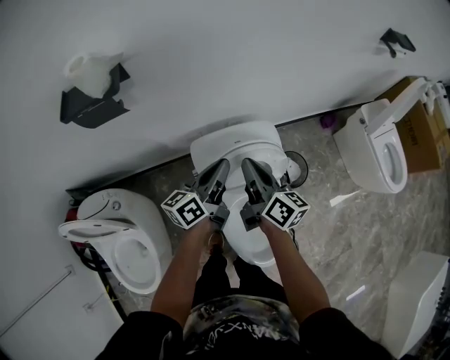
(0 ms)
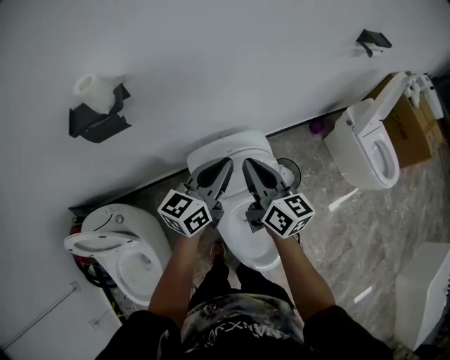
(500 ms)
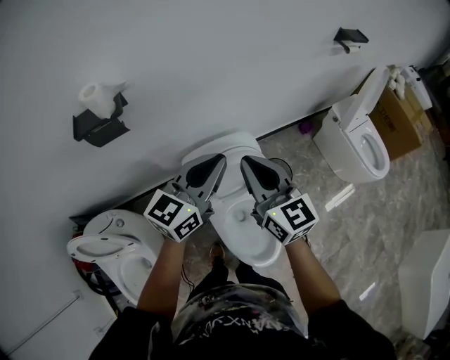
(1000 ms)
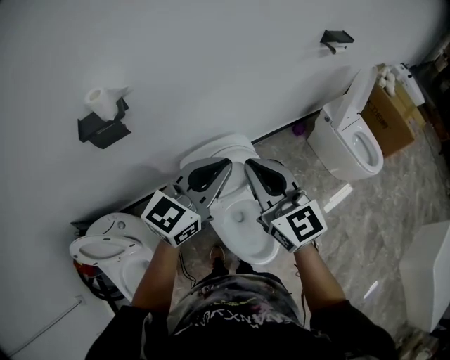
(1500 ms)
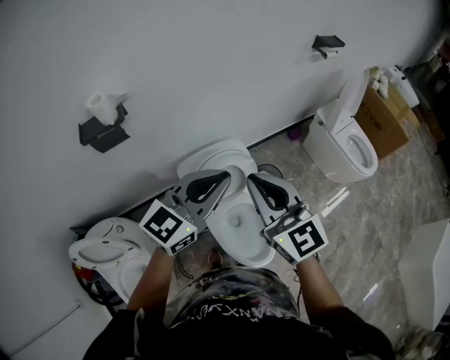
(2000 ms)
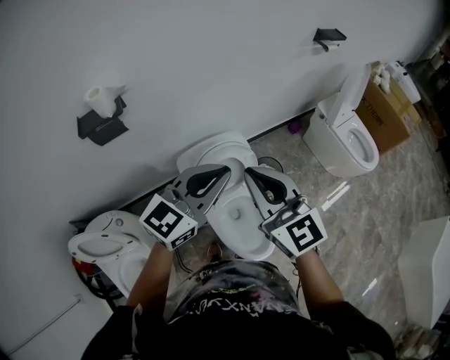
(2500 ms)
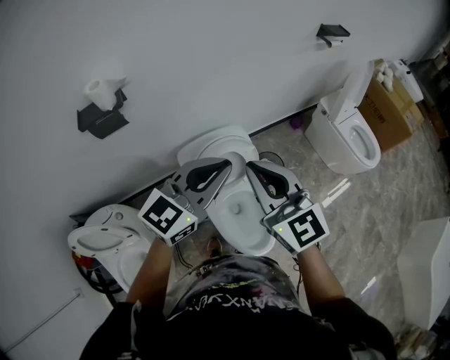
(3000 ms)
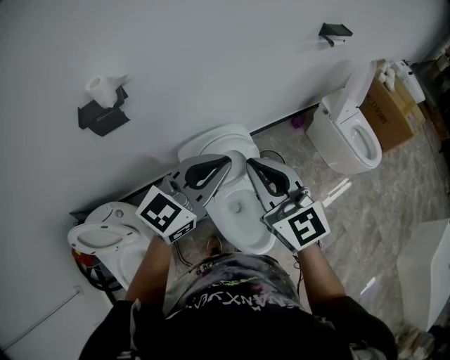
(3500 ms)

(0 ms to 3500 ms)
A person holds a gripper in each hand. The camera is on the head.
0 ms - 2000 ms: Both grippers travel together upward and backward, approximately 30 cm. The right gripper twists about 60 degrees counterclockwise, seen from behind, while the left gripper twists roughly 50 degrees clockwise, seen from behind.
2000 ms - 3500 ms: Neither gripper changes place.

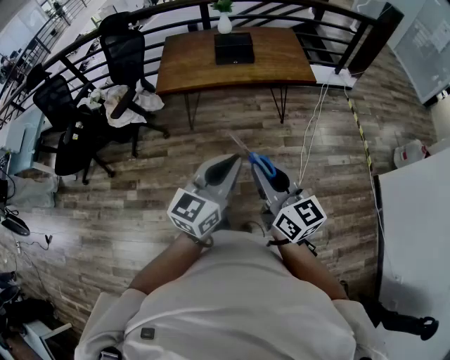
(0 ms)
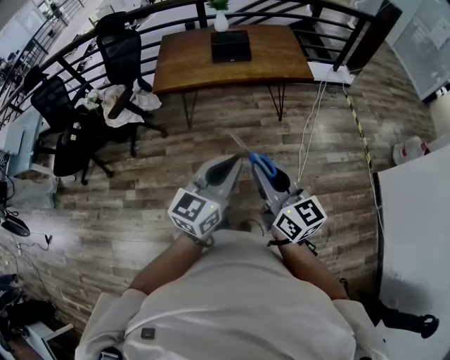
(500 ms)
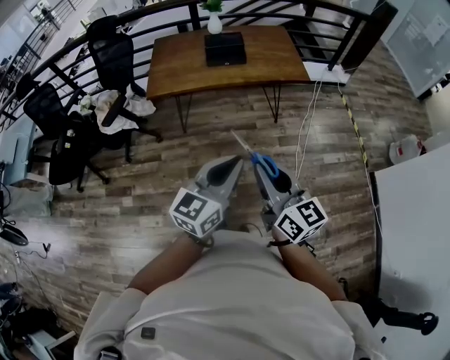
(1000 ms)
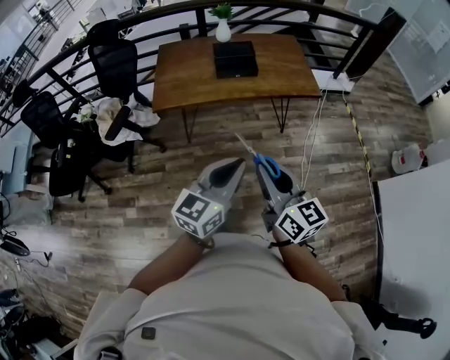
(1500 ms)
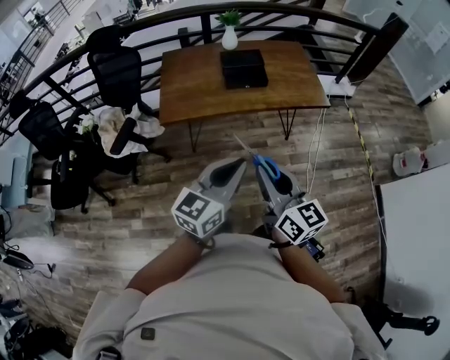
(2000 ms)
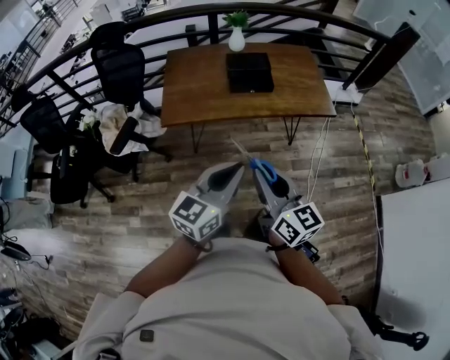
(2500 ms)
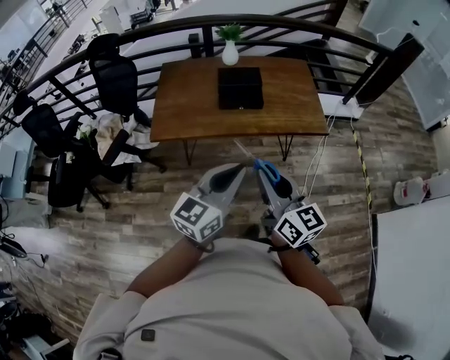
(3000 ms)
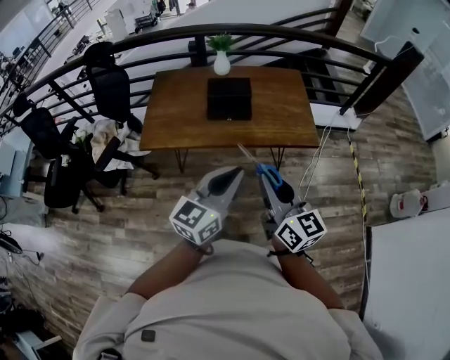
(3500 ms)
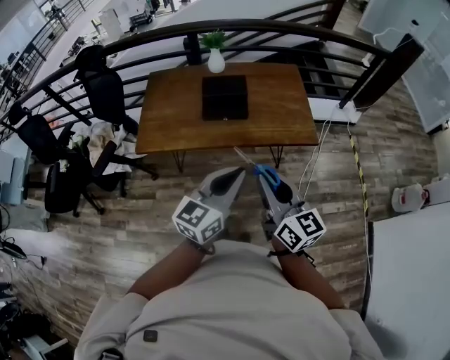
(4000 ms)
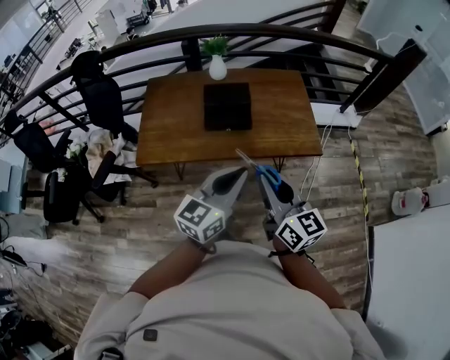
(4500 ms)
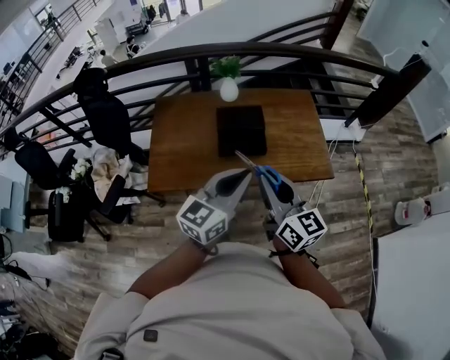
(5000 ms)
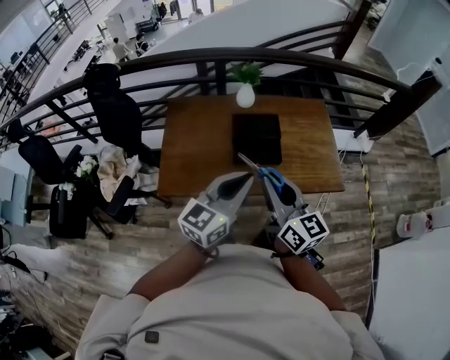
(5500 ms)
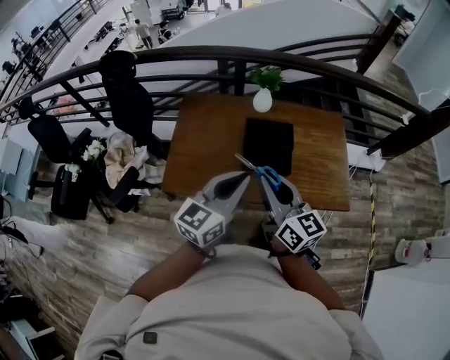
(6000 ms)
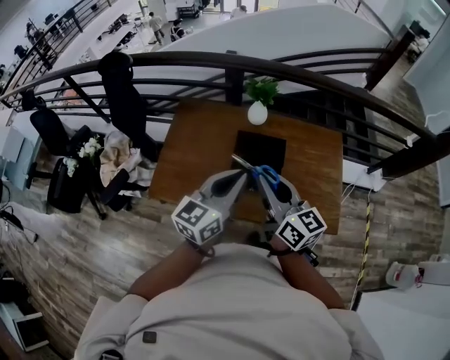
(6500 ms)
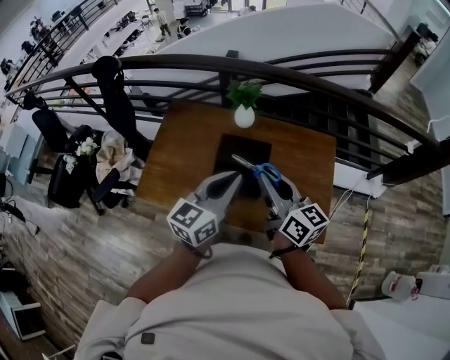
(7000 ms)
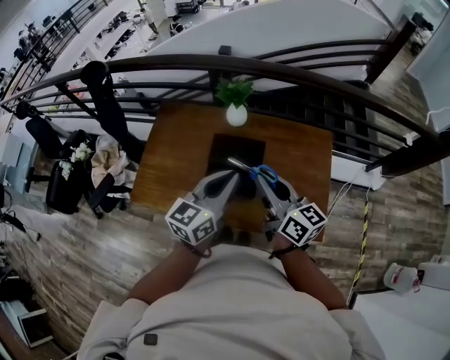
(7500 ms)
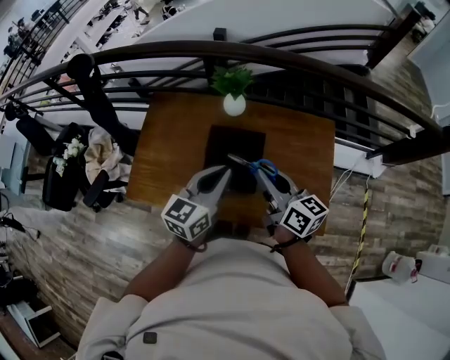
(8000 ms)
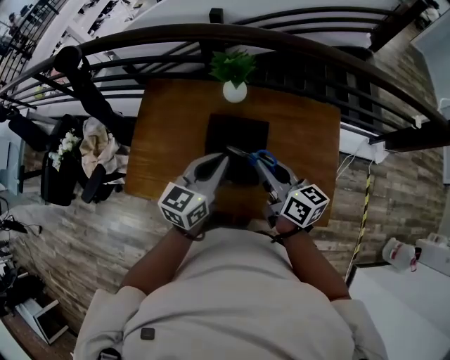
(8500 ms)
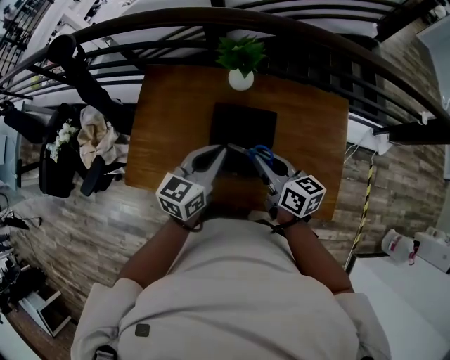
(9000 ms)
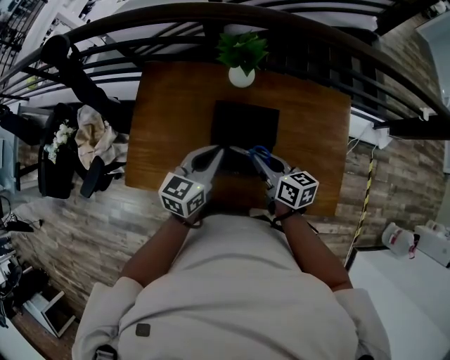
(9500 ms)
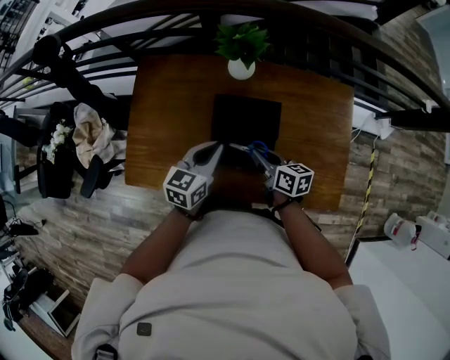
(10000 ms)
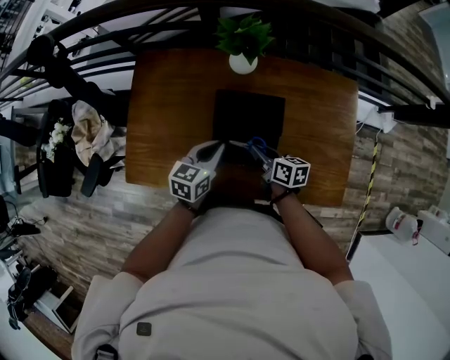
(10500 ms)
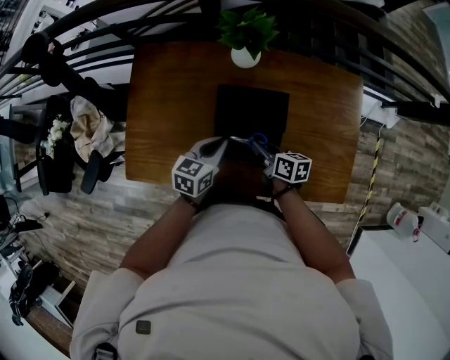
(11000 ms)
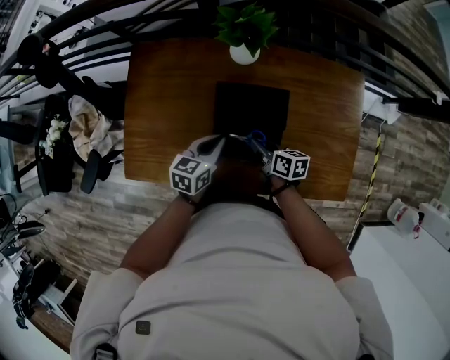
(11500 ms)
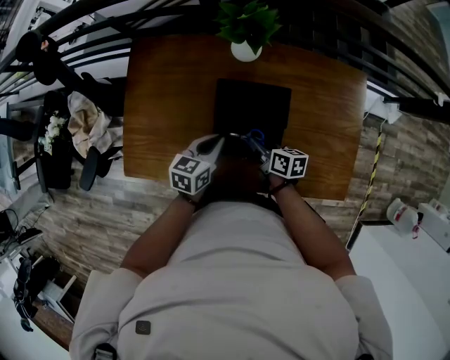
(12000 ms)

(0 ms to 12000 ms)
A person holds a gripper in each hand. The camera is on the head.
0 ms - 2000 ms: The two grippers go approximately 30 cm forward and to the left.
2000 ms - 4000 ms: The two grippers go approximately 30 cm forward and to the right.
4000 ms - 6000 ms: The grippers both shift forward and to the left by roughly 35 cm.
6000 ms - 8000 ms: The two grippers go some 30 cm forward, to the right and downward. The right gripper turns by approximately 20 degrees.
8000 ms - 10000 ms: The right gripper is displaced downward by some 25 cm, and turns by roughly 20 degrees. Meanwhile the left gripper shifts about 20 cm downward, forward and to the left.
10000 ms - 12000 ms: Both grippers move downward, about 10 cm.

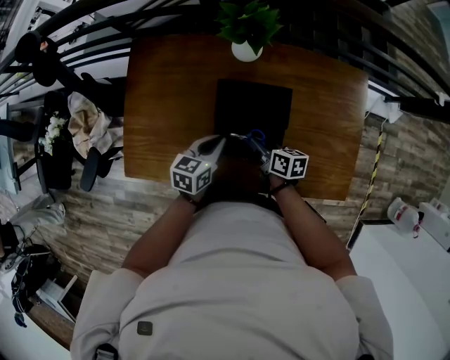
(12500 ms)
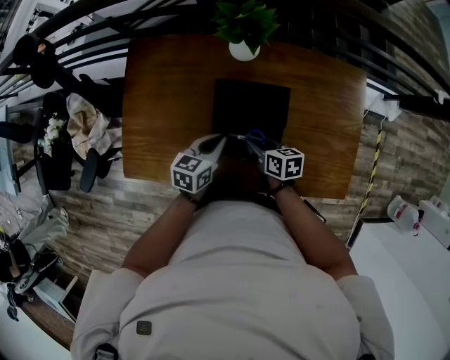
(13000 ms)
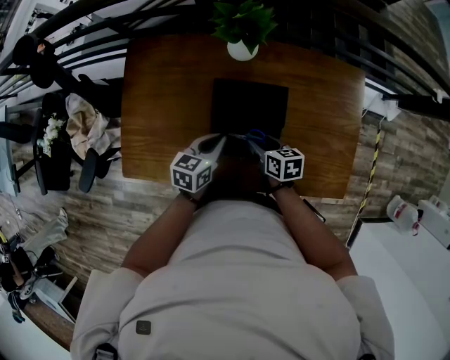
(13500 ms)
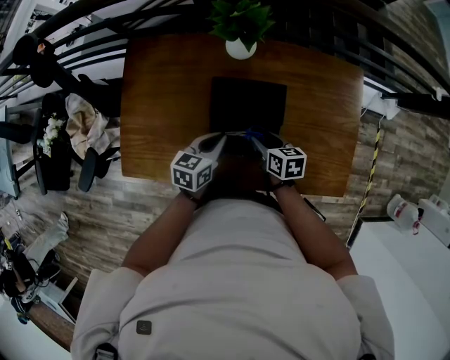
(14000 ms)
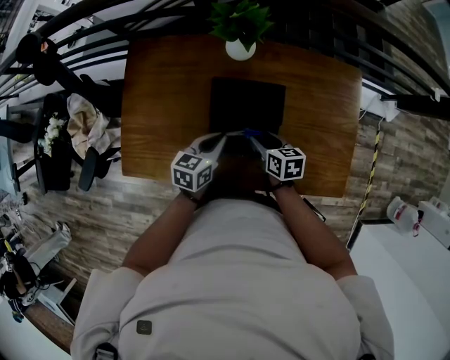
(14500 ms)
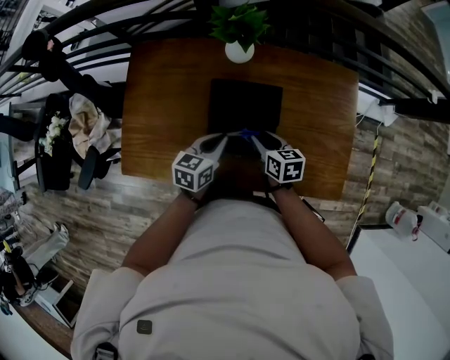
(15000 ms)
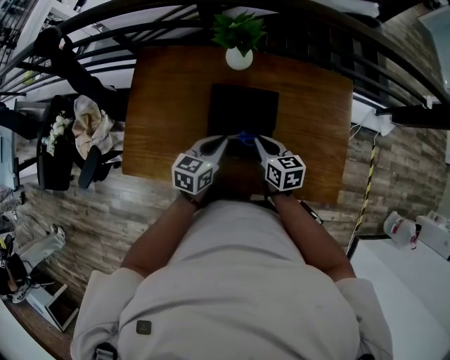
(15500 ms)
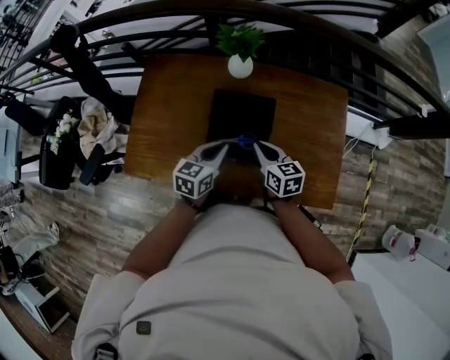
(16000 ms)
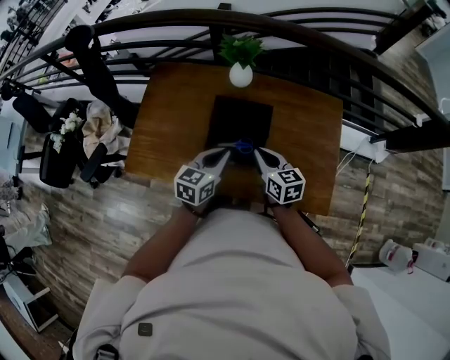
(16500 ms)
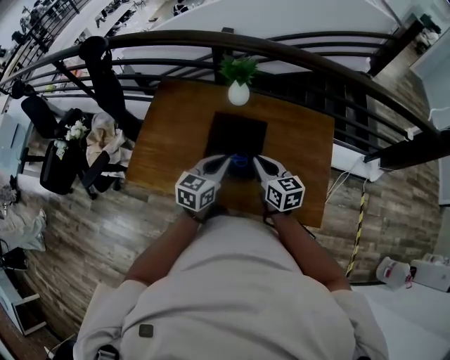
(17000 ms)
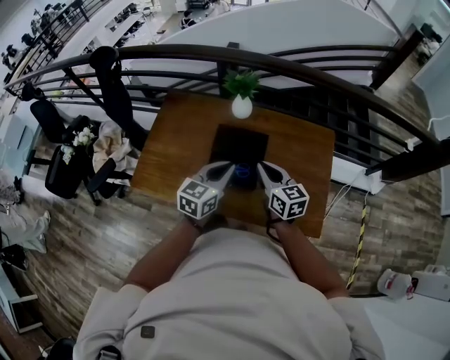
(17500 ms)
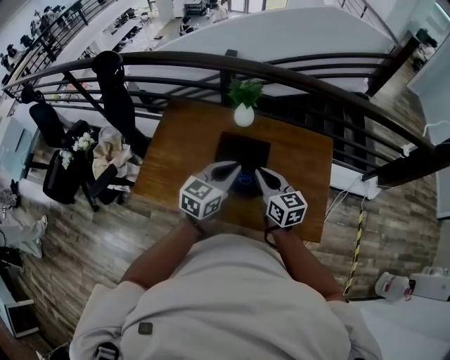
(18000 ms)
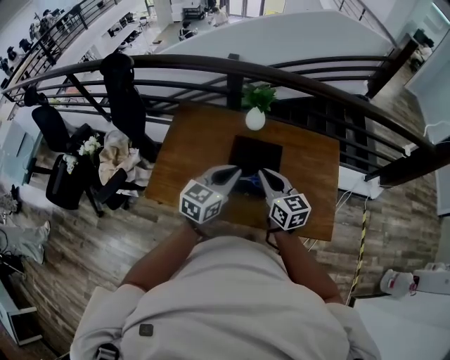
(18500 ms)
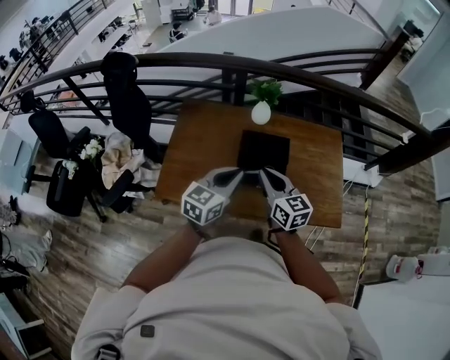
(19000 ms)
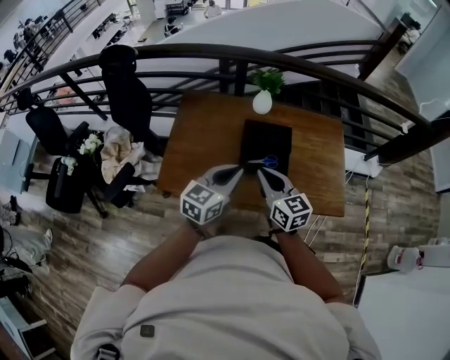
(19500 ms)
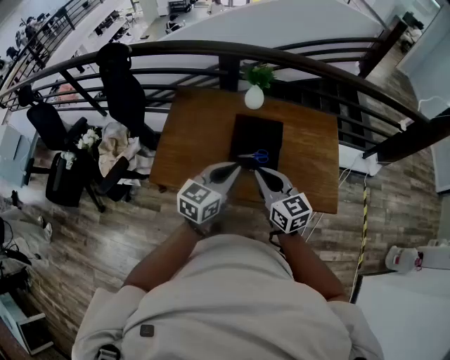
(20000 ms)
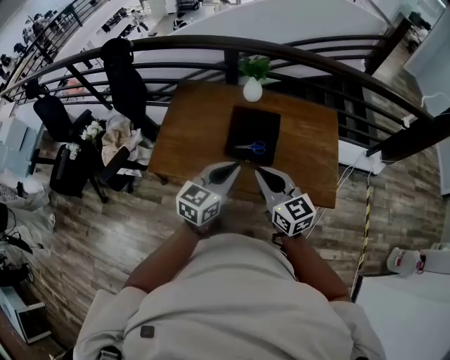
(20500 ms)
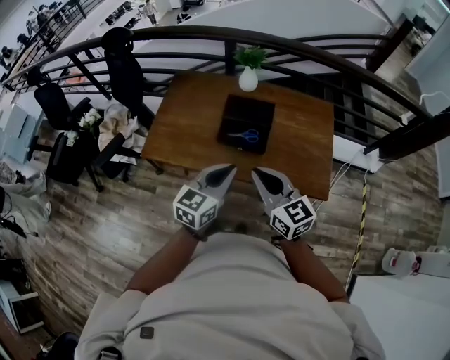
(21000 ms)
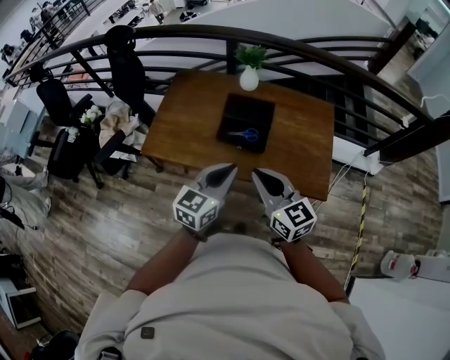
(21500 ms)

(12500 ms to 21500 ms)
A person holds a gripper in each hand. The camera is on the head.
12500 ms - 14500 ms: The right gripper opens.
14500 ms - 17000 ms: The right gripper heads upward and backward, covering approximately 20 cm, rotates some 30 degrees, and closes its fingers. The left gripper is displaced upward, backward and to the right by approximately 20 cm, and rotates approximately 20 degrees.
17000 ms - 19500 ms: The grippers both shift to the left, backward and upward by roughly 25 cm.
19500 ms - 21500 ms: The left gripper heads to the right and backward, covering roughly 20 cm, while the right gripper moves backward and to the right, about 20 cm.

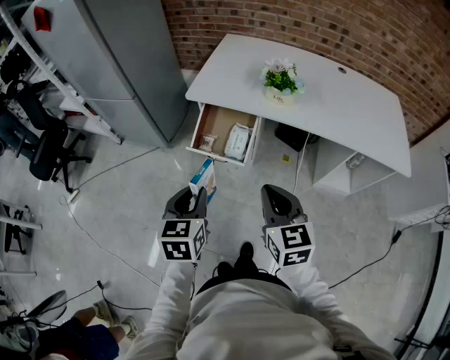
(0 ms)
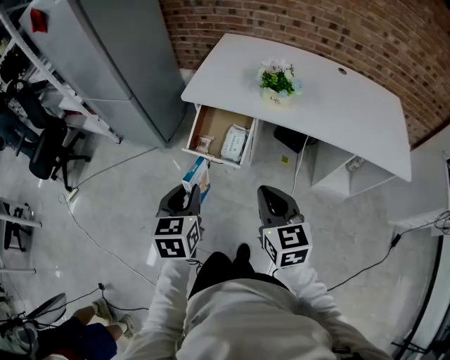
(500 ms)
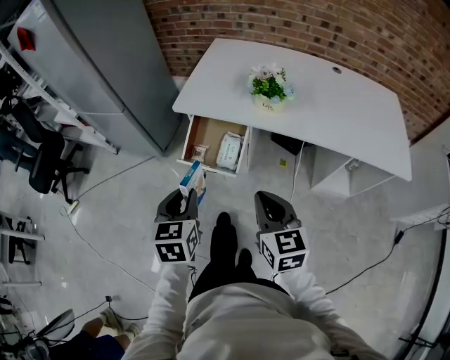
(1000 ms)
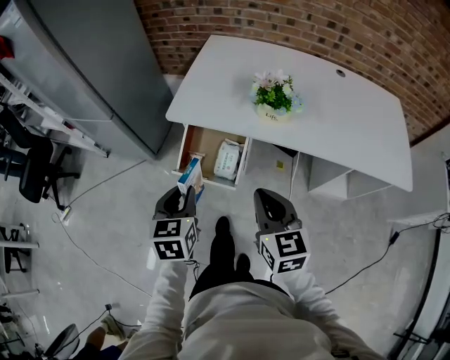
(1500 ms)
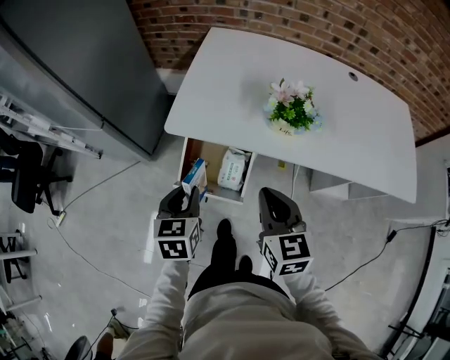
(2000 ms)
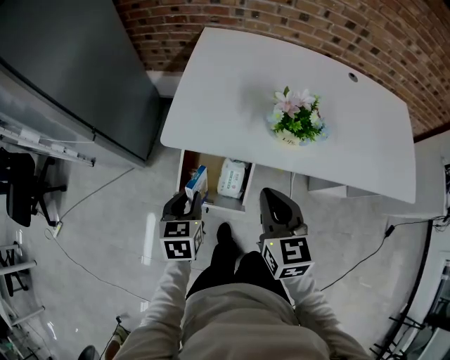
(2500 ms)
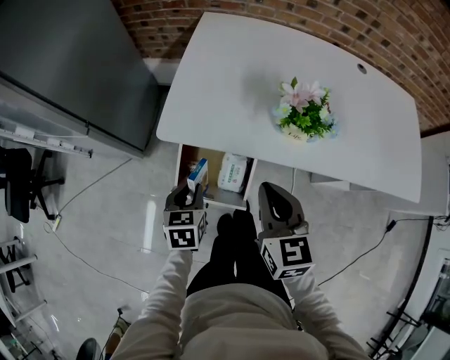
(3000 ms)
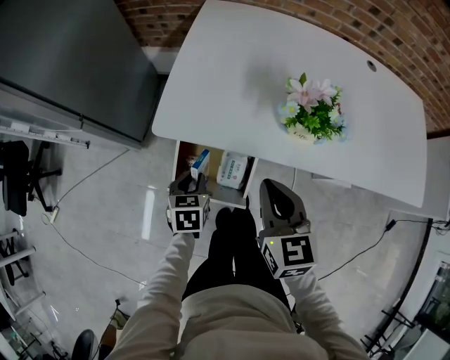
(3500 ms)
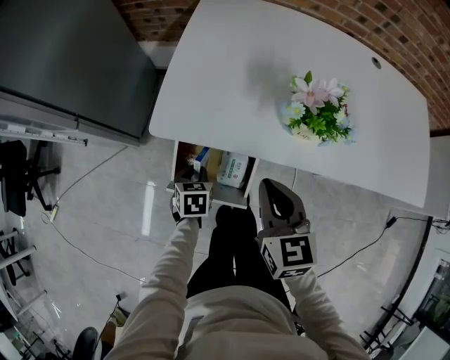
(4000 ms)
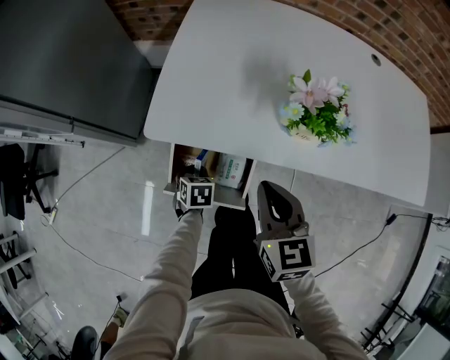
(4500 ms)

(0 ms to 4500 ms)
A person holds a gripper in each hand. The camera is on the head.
0 ms - 2000 ms: The two grippers go roughly 25 cm forward.
2000 ms - 4500 ms: The left gripper shifts some 30 cm downward and forward, and turns by approximately 30 degrees, while the right gripper goes some 10 cm forward and downward.
